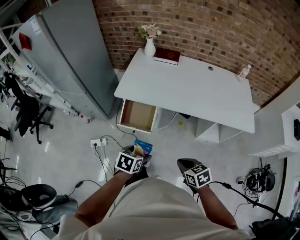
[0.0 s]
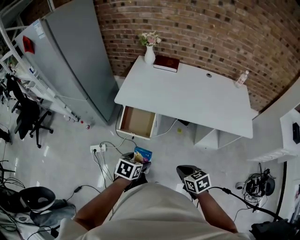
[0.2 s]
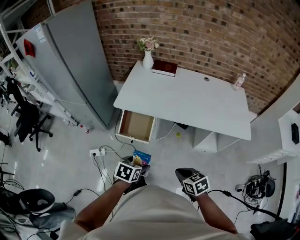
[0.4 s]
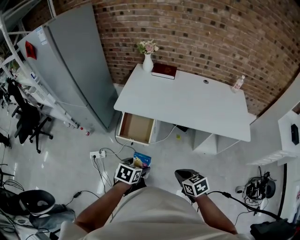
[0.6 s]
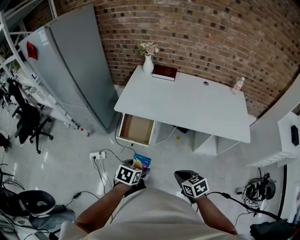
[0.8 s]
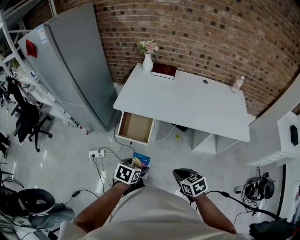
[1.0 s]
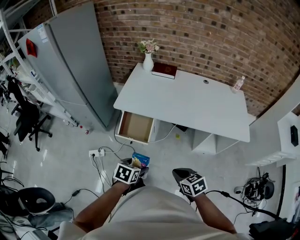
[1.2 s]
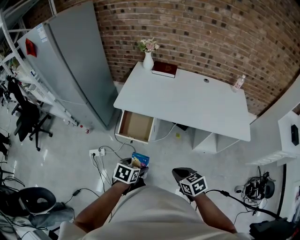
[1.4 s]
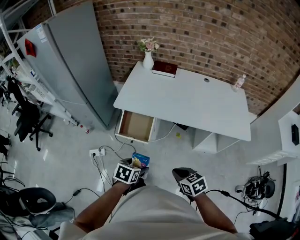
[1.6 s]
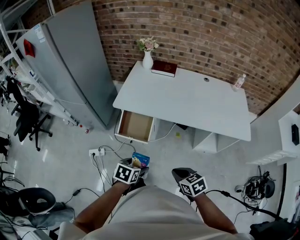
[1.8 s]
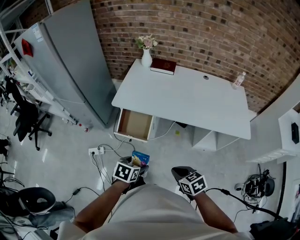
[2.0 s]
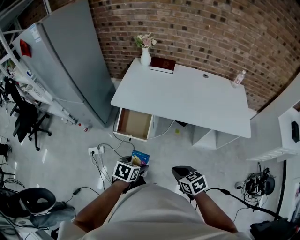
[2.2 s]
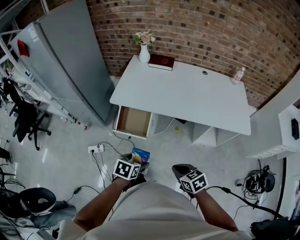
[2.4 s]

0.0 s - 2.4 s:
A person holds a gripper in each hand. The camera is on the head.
0.0 s - 2.4 s: The grippers stay close to where they were, moving slightly.

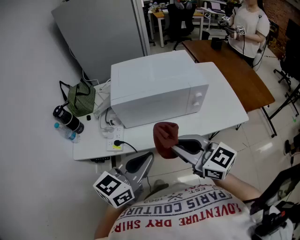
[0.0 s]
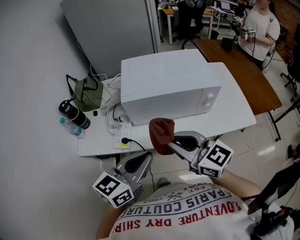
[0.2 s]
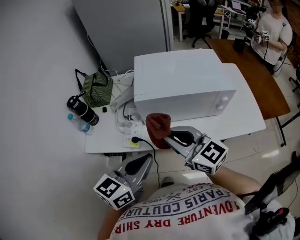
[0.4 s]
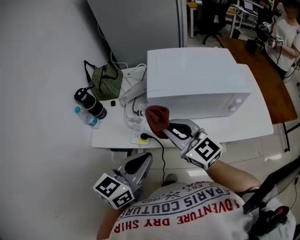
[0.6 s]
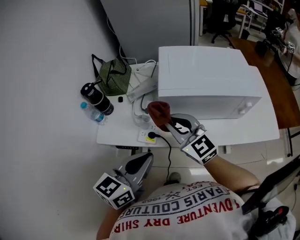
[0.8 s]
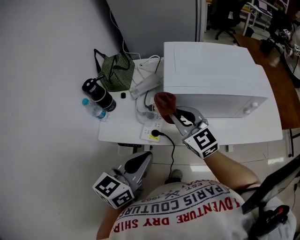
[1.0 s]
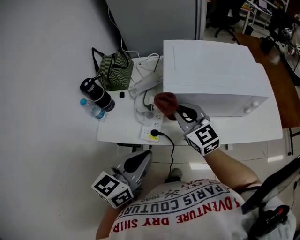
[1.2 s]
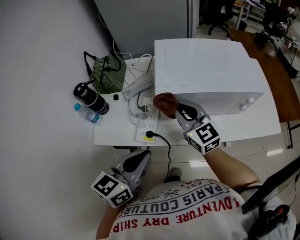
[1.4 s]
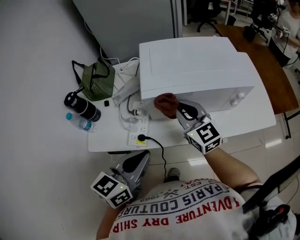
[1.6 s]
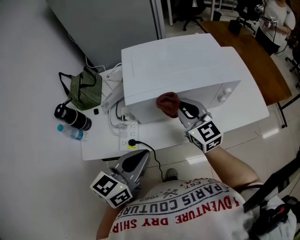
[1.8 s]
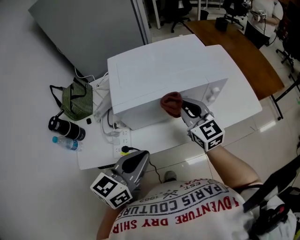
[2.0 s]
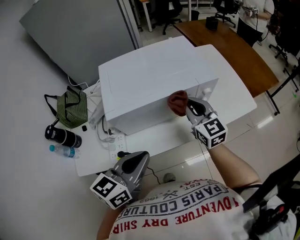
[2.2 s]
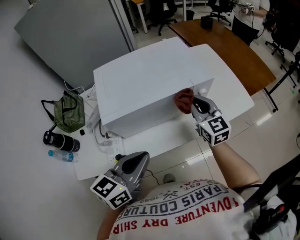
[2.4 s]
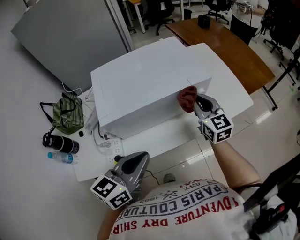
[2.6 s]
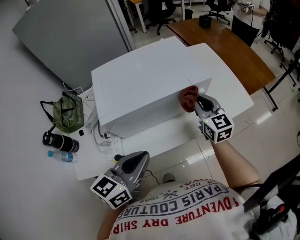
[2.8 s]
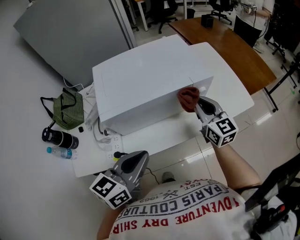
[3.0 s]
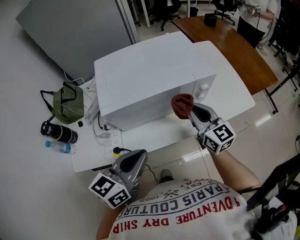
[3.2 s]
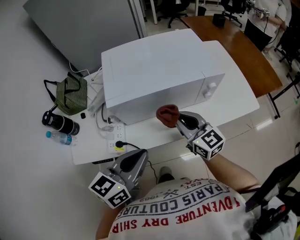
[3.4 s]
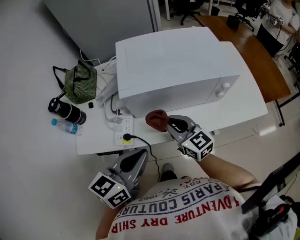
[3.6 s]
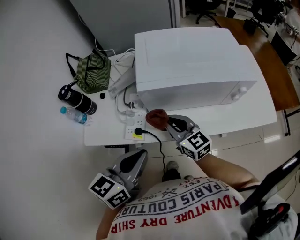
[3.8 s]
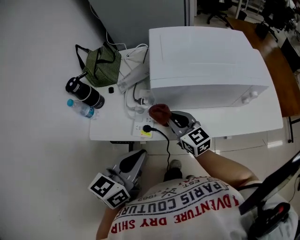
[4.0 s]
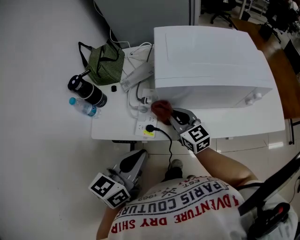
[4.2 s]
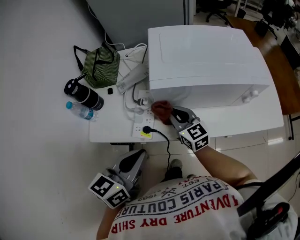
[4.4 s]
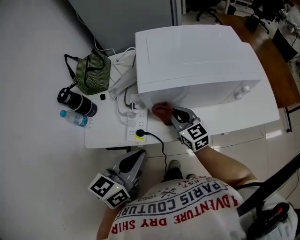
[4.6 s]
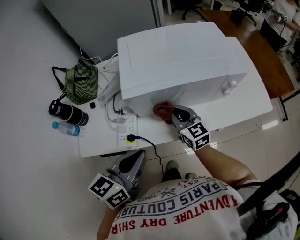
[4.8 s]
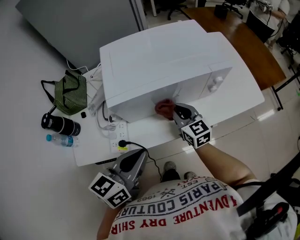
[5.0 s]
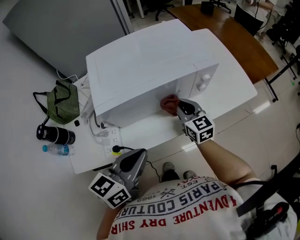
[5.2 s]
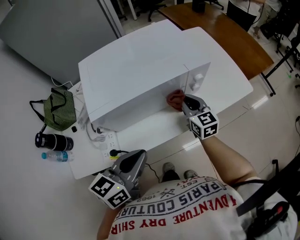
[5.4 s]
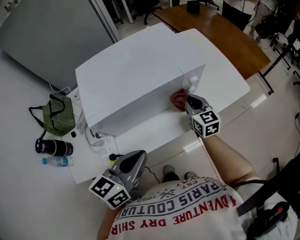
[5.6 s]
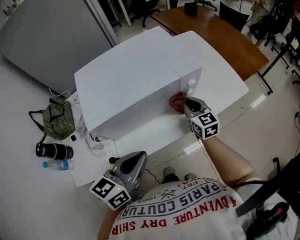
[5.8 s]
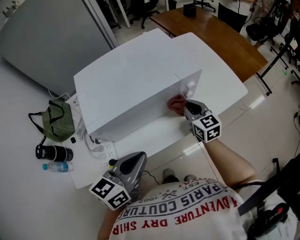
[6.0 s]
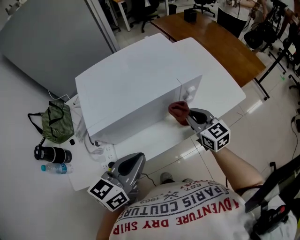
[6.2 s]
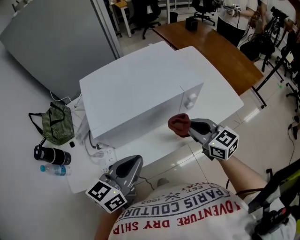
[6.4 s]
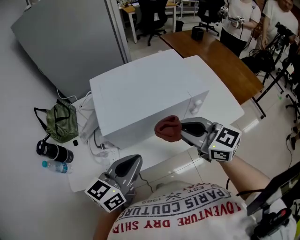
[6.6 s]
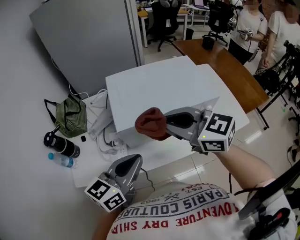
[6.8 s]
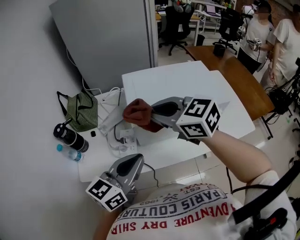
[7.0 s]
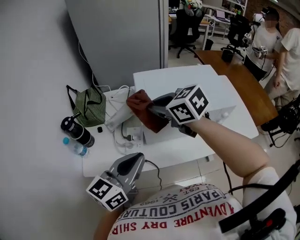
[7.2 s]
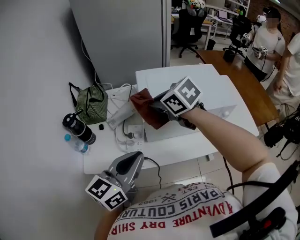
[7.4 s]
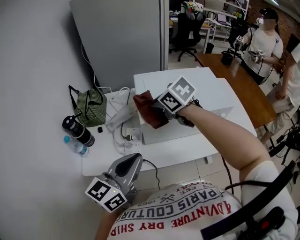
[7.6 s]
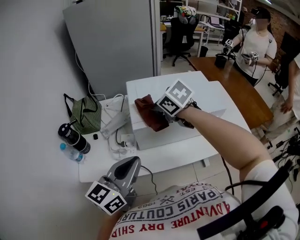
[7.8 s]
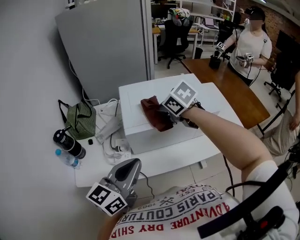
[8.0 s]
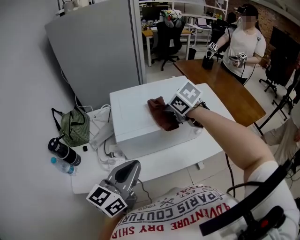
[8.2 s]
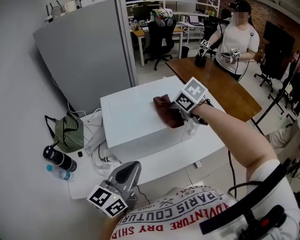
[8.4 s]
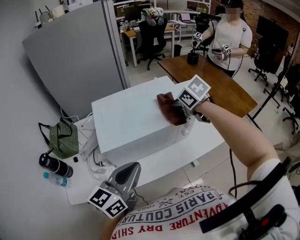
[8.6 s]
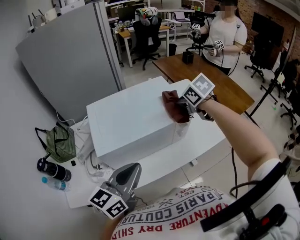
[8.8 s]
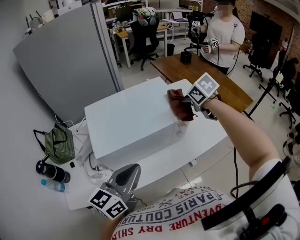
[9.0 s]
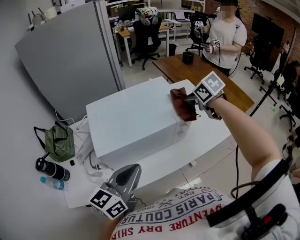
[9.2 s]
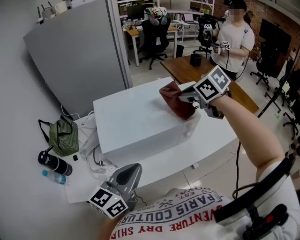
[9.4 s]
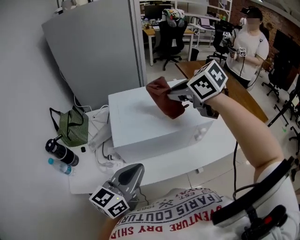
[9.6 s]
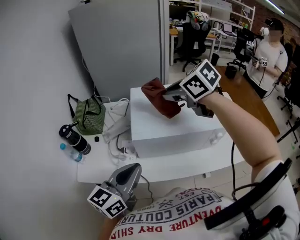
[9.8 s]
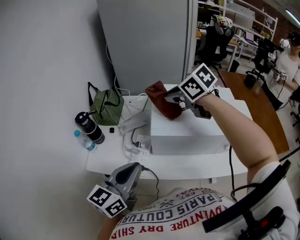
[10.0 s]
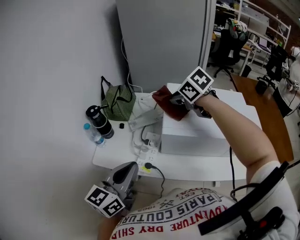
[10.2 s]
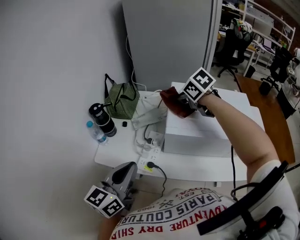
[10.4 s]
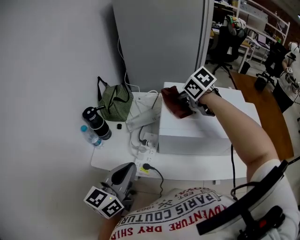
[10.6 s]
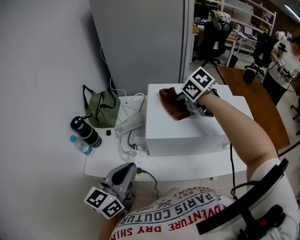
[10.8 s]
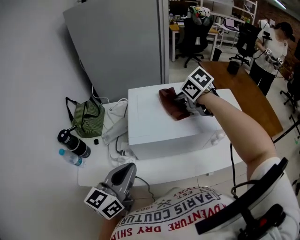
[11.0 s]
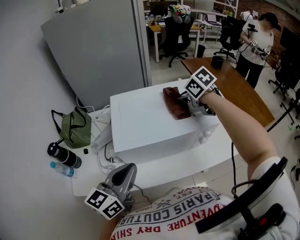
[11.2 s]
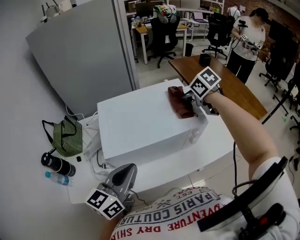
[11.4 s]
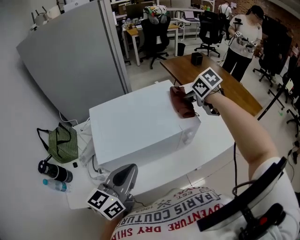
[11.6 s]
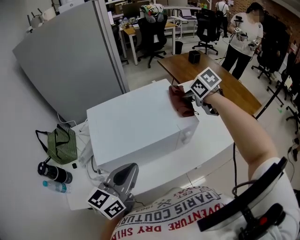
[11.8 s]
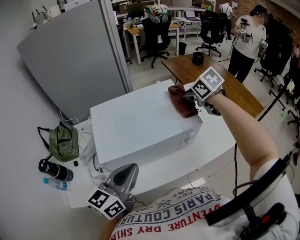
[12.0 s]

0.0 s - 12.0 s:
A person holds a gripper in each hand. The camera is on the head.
0.0 s - 1.6 s: The left gripper shifts approximately 15 cm to the left and forward. The right gripper goes about 20 cm forward.
1.6 s - 3.0 s: The right gripper heads to the right, covering roughly 25 cm, and turns by approximately 20 degrees. The left gripper travels to the right and forward by approximately 10 cm.
3.0 s - 4.4 s: The left gripper shifts by some 15 cm, and swivels approximately 20 degrees, while the right gripper shifts by approximately 30 cm, and swivels approximately 30 degrees.
4.4 s - 6.0 s: The right gripper moves approximately 30 cm, and swivels approximately 30 degrees. The left gripper ends up about 20 cm from where it was, and rotates roughly 30 degrees.
6.0 s - 7.6 s: The right gripper shifts by about 35 cm, and swivels some 50 degrees. Meanwhile the left gripper ends up some 20 cm from where it was, and swivels about 20 degrees.
7.6 s - 9.0 s: The right gripper shifts approximately 35 cm to the right, and swivels some 30 degrees. The left gripper shifts some 15 cm to the right.
9.0 s - 10.4 s: The left gripper shifts by some 25 cm, and changes its angle by about 40 degrees. Meanwhile the right gripper travels upward and back again, some 10 cm each way, and swivels about 40 degrees.
10.4 s - 12.0 s: The left gripper changes place by approximately 25 cm, and changes its angle by roughly 30 degrees; the right gripper ends up about 40 cm from where it was, and turns by some 30 degrees.

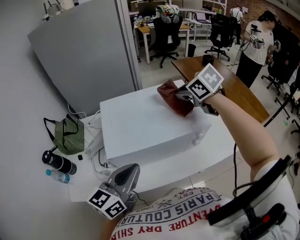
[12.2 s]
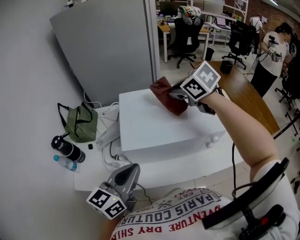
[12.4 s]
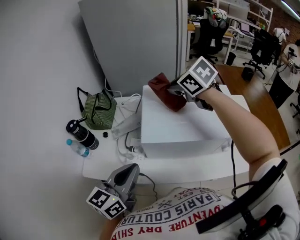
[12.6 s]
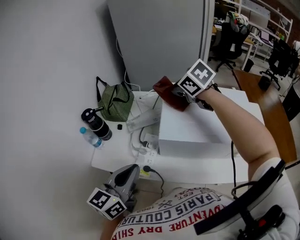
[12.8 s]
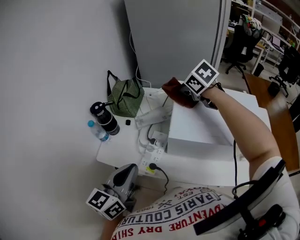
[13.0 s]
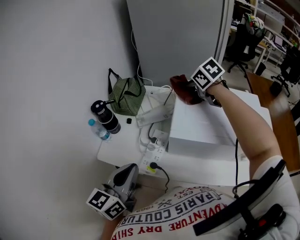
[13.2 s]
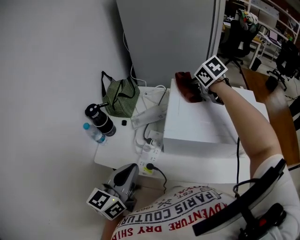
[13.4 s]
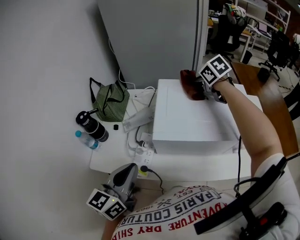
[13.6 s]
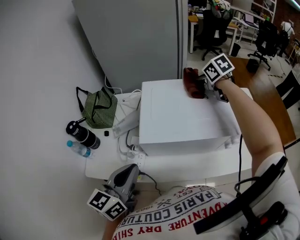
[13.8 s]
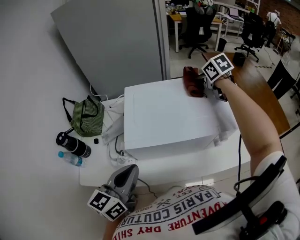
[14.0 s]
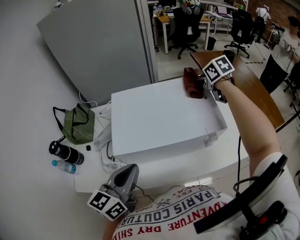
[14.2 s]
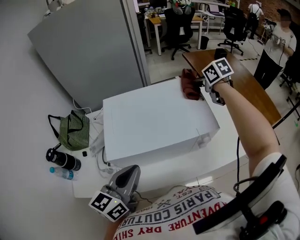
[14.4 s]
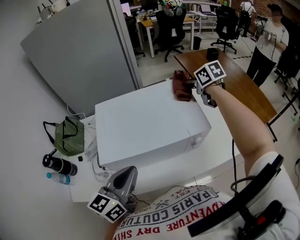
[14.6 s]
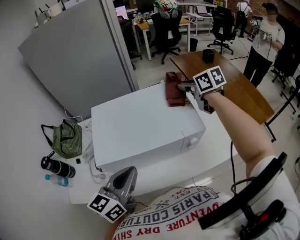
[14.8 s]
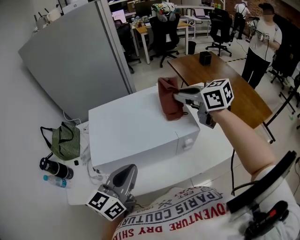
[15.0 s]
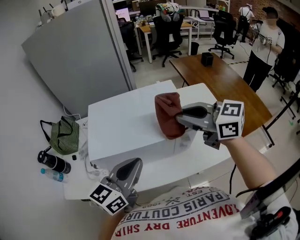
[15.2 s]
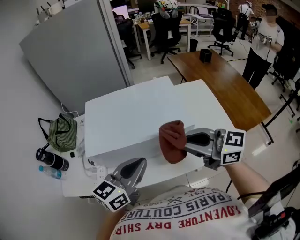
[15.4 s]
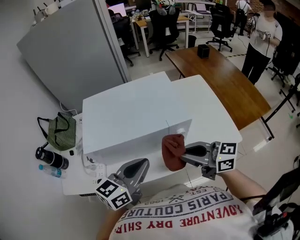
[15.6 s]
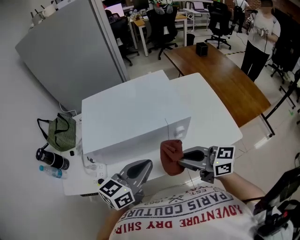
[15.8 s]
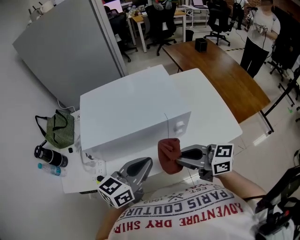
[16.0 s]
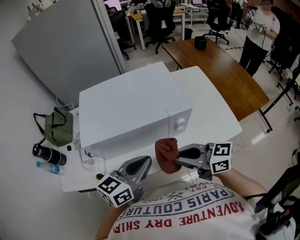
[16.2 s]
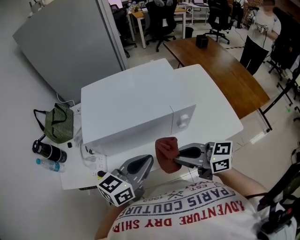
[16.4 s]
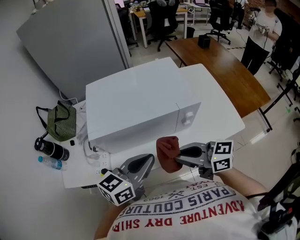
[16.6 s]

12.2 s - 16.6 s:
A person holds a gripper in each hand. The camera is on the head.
12.2 s - 13.6 s: The right gripper shifts by approximately 20 cm. The left gripper shifts by about 15 cm, and rotates approximately 30 degrees.
13.6 s - 15.2 s: The left gripper goes approximately 25 cm to the right, and rotates about 30 degrees, while the right gripper moves backward and to the right, approximately 35 cm, and tilts its fingers some 40 degrees upward.
15.2 s - 16.6 s: The left gripper shifts approximately 10 cm downward and backward. Meanwhile the right gripper shifts some 25 cm downward, backward and to the left, and changes its angle by some 20 degrees.

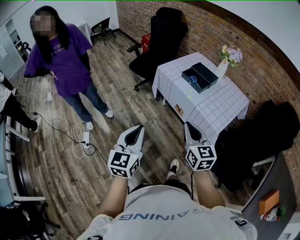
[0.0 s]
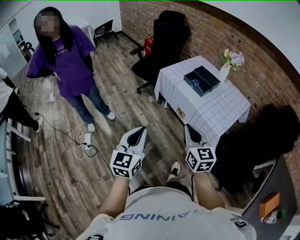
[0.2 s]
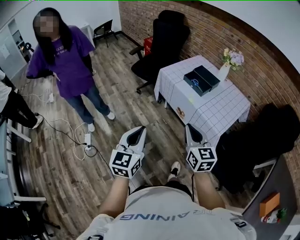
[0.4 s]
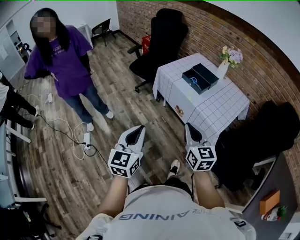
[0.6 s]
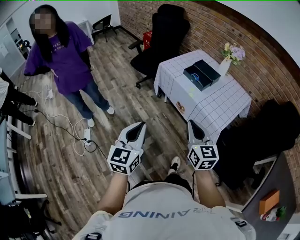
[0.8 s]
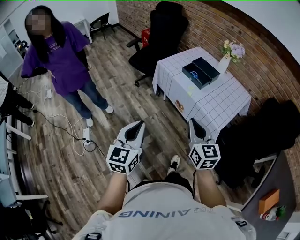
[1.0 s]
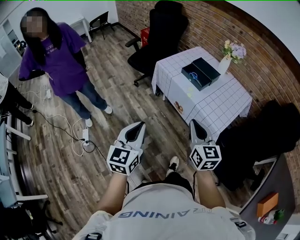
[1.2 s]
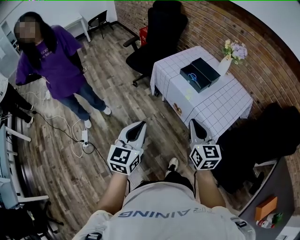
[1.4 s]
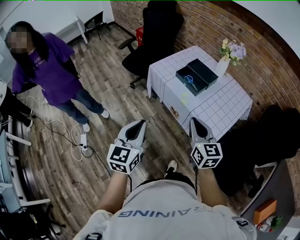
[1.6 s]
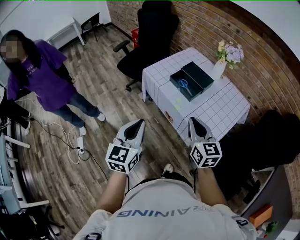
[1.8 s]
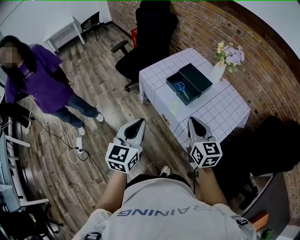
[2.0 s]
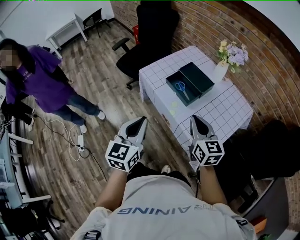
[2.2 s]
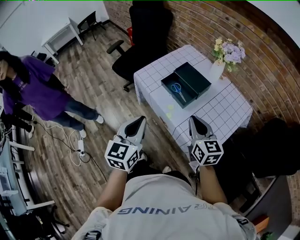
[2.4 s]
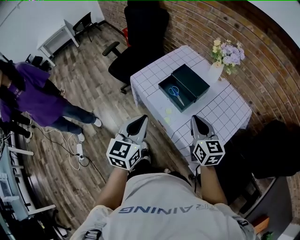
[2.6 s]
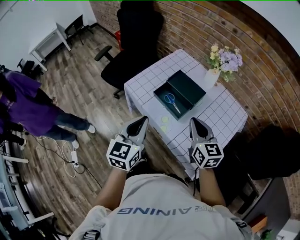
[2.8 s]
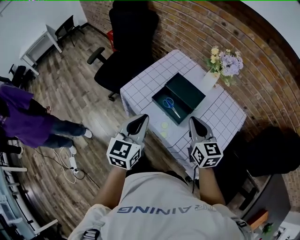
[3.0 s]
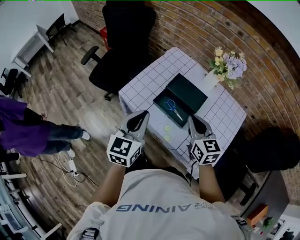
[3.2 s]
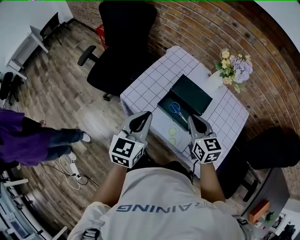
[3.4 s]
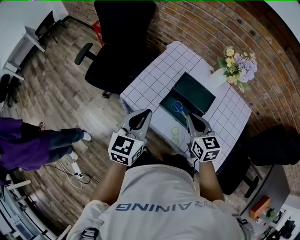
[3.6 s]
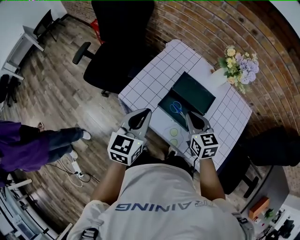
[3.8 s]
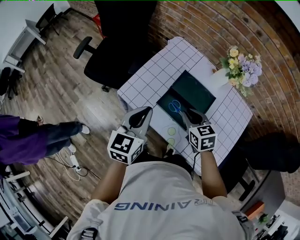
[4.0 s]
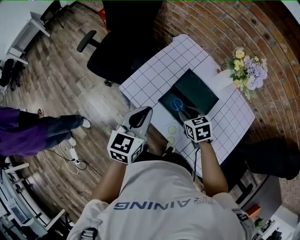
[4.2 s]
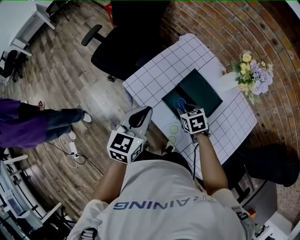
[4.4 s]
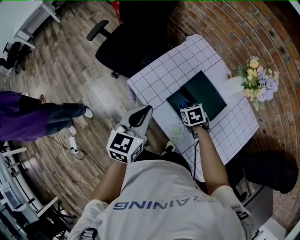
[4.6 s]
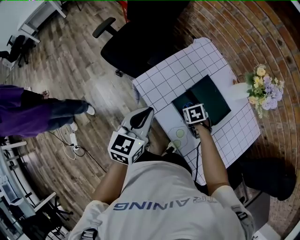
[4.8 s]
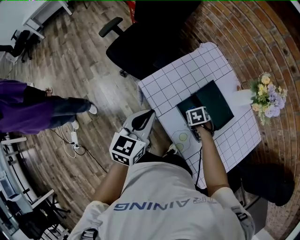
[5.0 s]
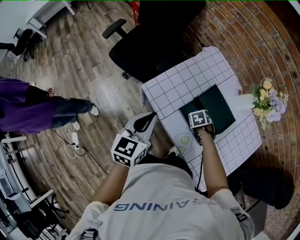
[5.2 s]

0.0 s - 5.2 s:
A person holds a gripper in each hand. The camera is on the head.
0.0 s - 1.8 s: Both grippers move forward and to the right, approximately 20 cm.
1.8 s - 3.4 s: The two grippers go roughly 35 cm forward.
3.4 s - 5.2 s: The left gripper moves about 10 cm, while the right gripper is displaced downward by roughly 25 cm, points its fingers approximately 60 degrees further downward, and opens.
